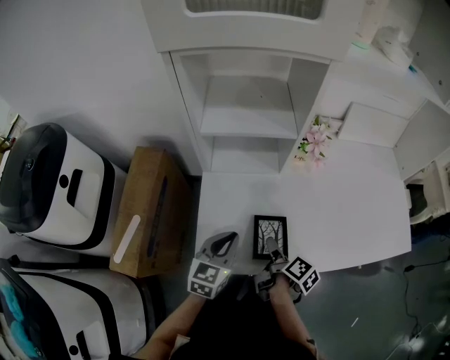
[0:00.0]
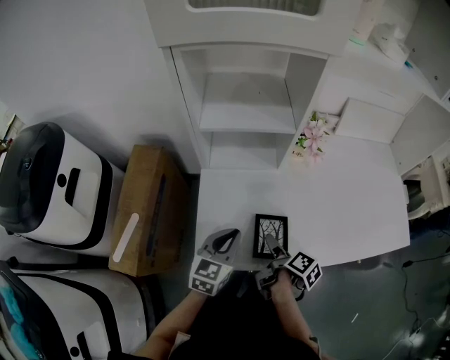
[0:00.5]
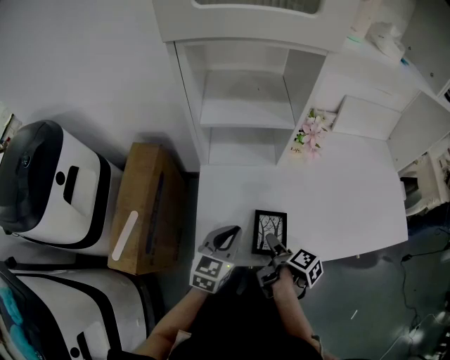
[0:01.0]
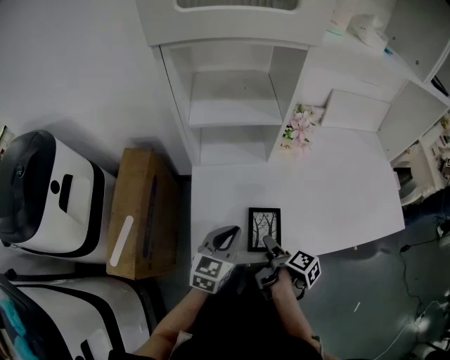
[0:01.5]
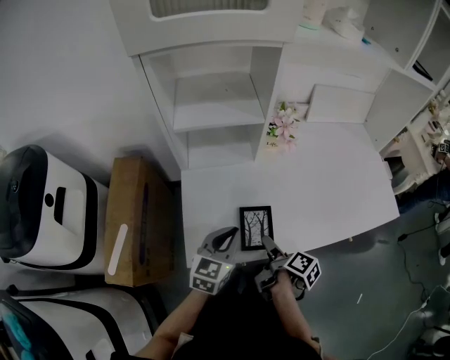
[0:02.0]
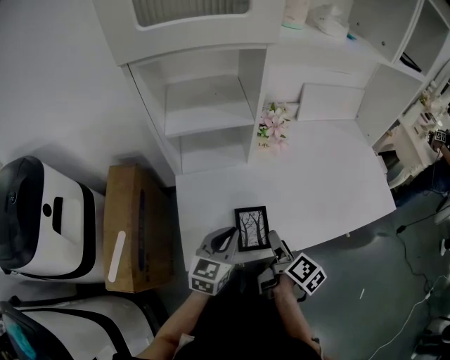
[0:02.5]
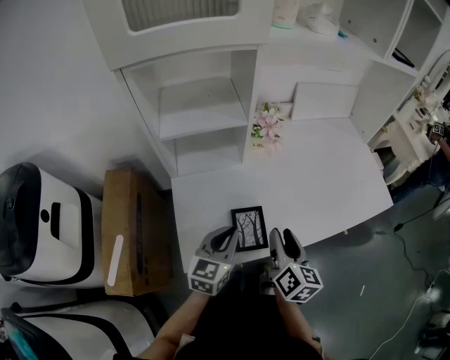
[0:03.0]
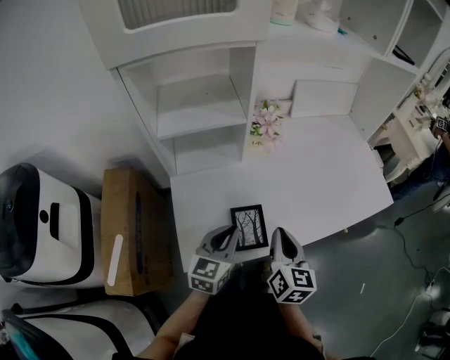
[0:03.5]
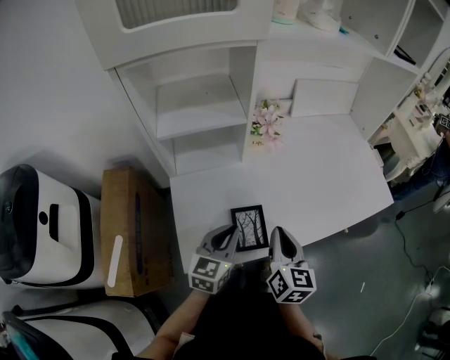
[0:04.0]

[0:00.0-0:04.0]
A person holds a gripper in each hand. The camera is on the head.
0:00.0 to 0:02.0: The right gripper shifts approximately 5 cm backward. The left gripper ends up approximately 5 cm from where it was.
0:02.0 to 0:04.0: The right gripper heads upward, covering approximately 15 cm, rolls counterclockwise, seen from behind, by roughly 60 degrees, and closes.

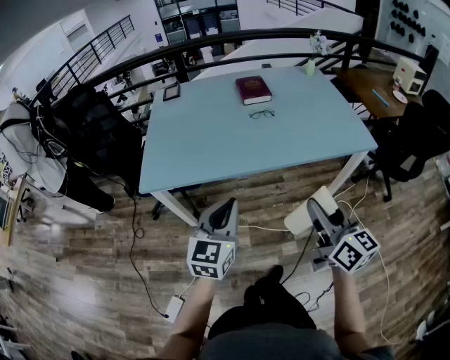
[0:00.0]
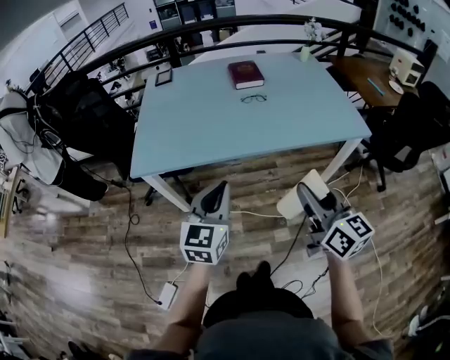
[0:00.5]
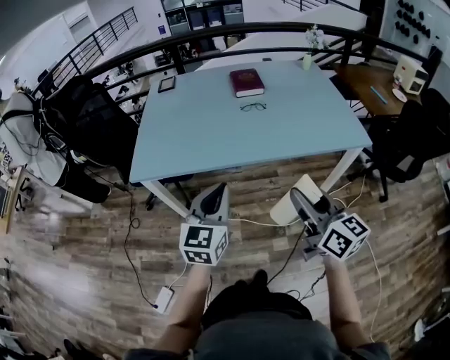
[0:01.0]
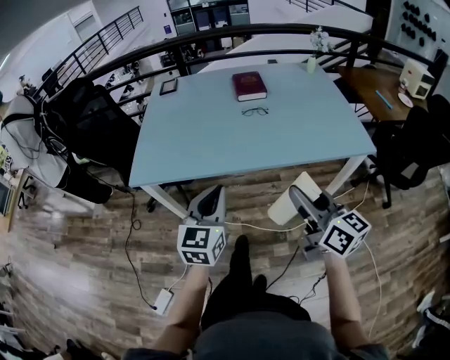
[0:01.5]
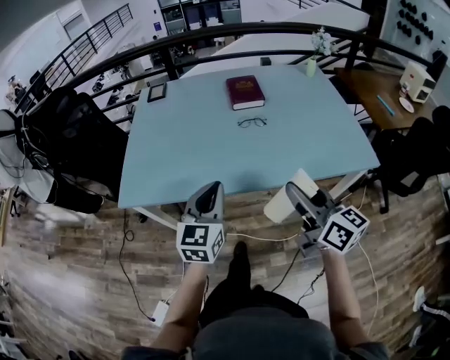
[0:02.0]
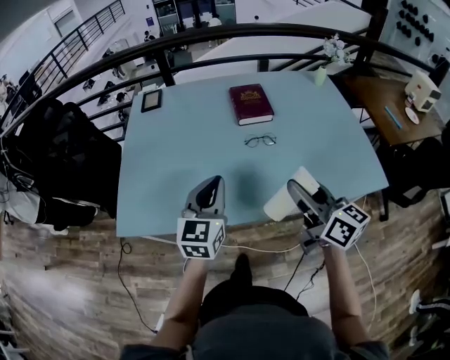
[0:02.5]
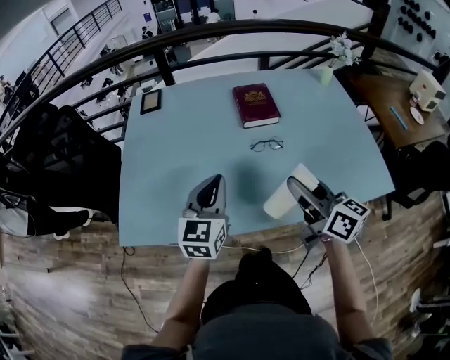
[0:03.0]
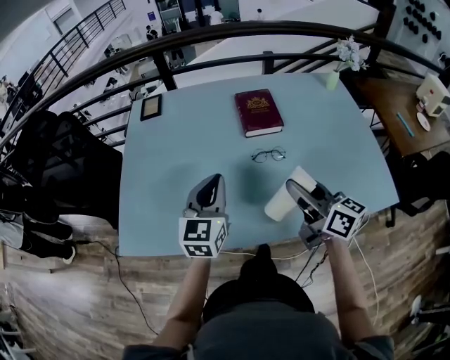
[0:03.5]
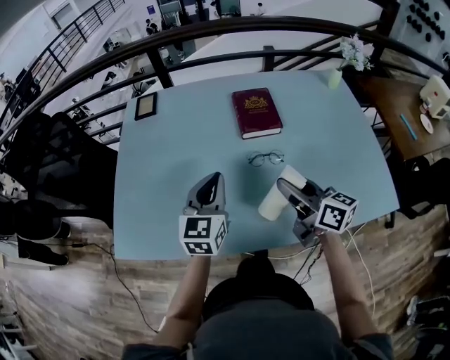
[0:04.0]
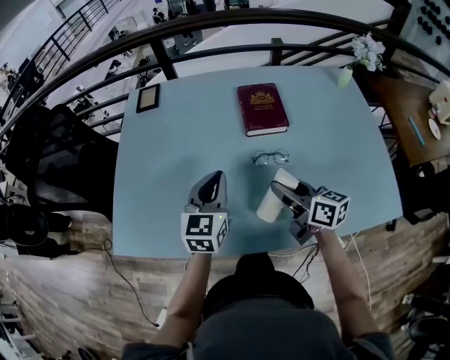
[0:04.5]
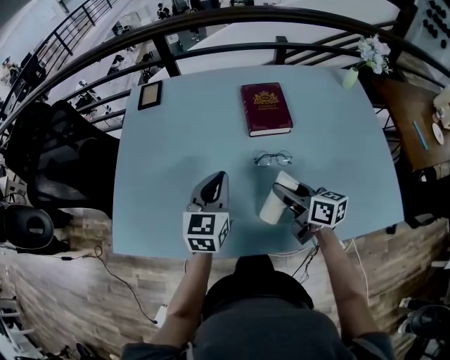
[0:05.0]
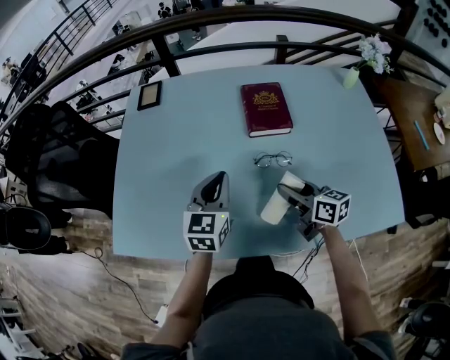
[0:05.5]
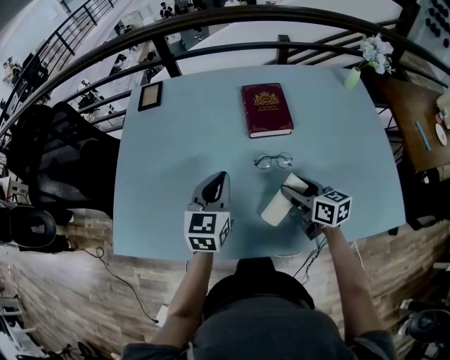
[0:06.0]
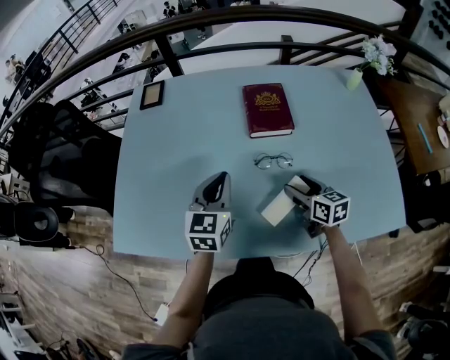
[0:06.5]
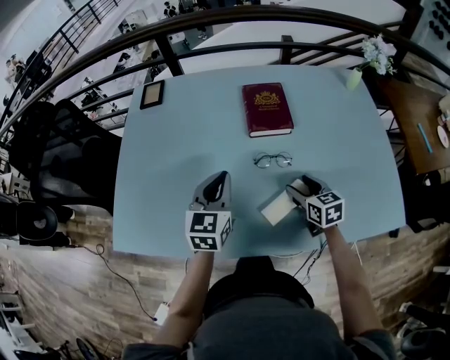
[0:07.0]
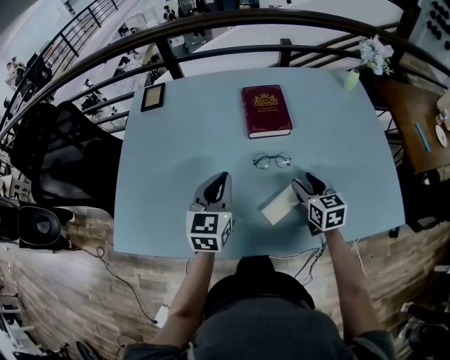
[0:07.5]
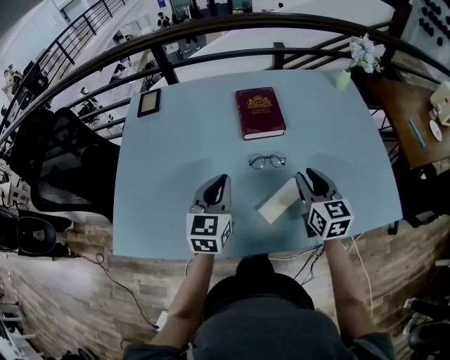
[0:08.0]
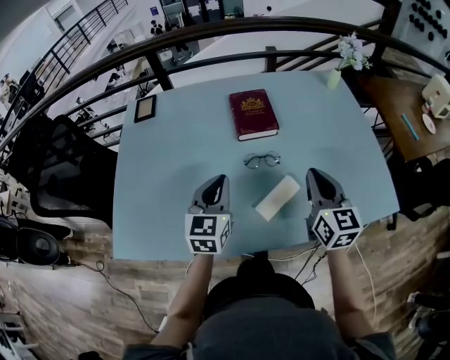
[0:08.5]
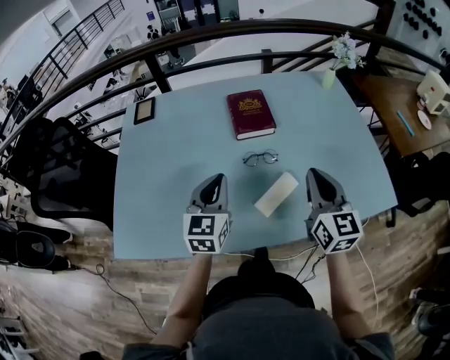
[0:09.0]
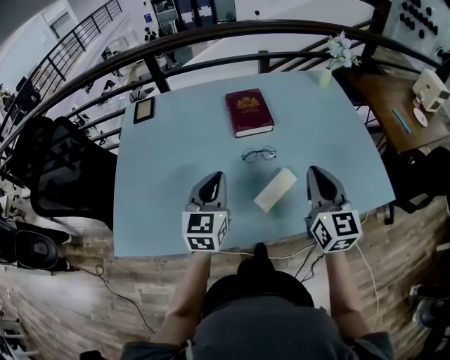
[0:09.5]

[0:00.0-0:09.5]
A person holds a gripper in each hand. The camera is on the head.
0:00.0 to 0:02.0: Both grippers move forward, some 15 cm.
0:02.0 to 0:04.0: The two grippers go some 25 cm forward.
0:04.0 to 0:05.5: The right gripper travels downward by about 10 cm.
0:05.5 to 0:07.5: The right gripper travels to the right by approximately 5 cm, and changes its angle by some 30 degrees.
0:07.5 to 0:09.5: The right gripper shifts roughly 20 cm upward and backward, turns by approximately 30 degrees, and closes its fingers, while the left gripper changes place by roughly 5 cm.

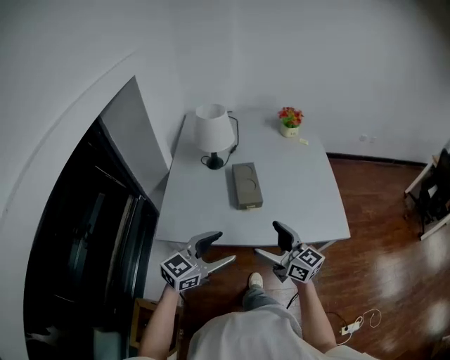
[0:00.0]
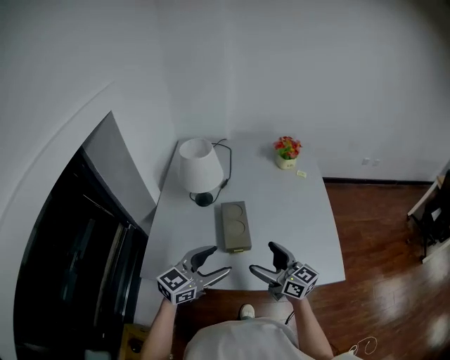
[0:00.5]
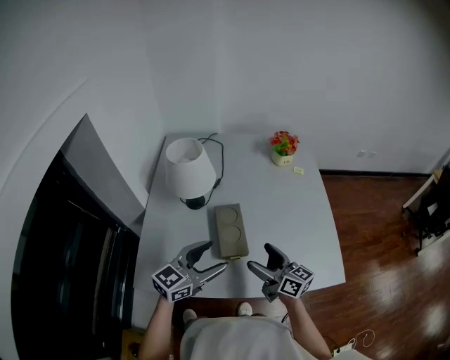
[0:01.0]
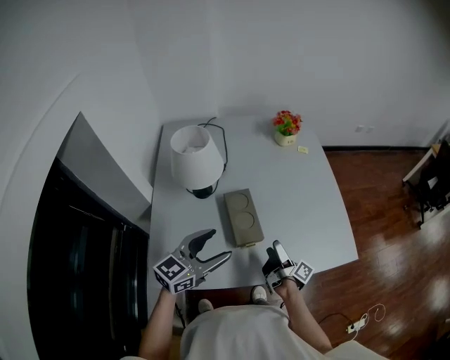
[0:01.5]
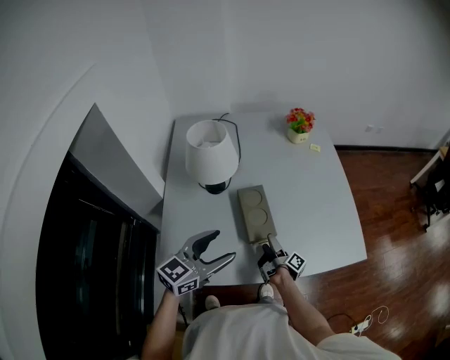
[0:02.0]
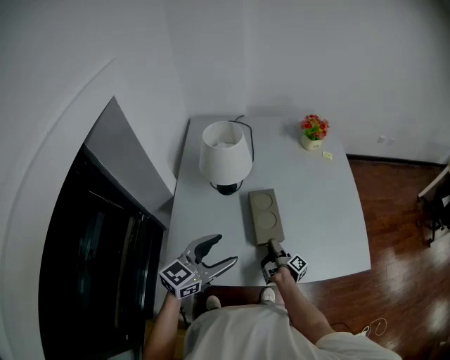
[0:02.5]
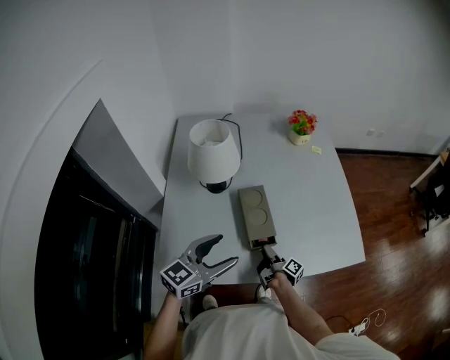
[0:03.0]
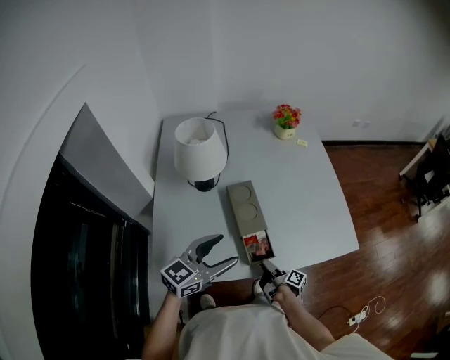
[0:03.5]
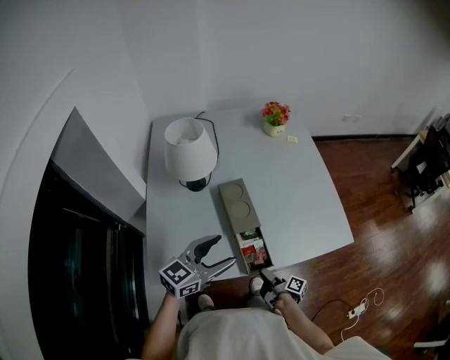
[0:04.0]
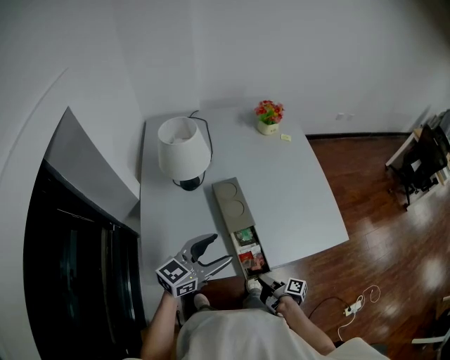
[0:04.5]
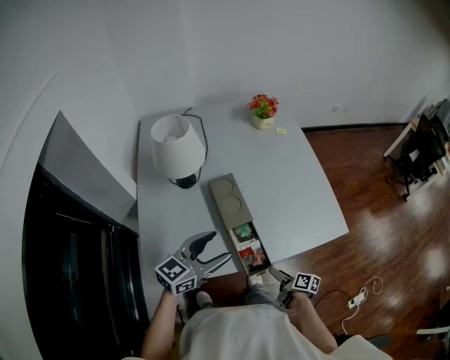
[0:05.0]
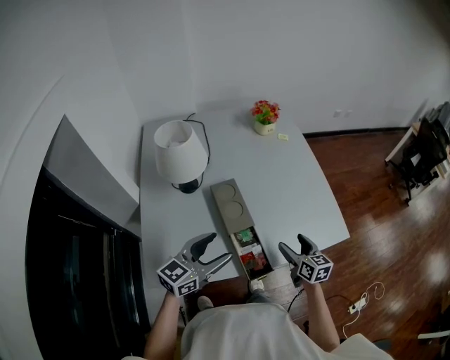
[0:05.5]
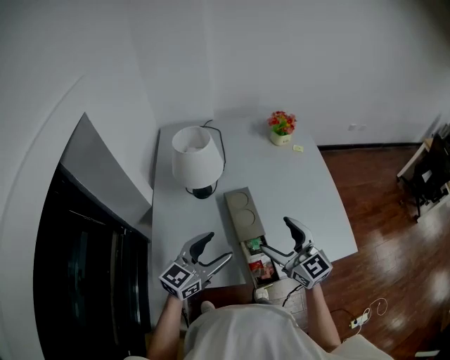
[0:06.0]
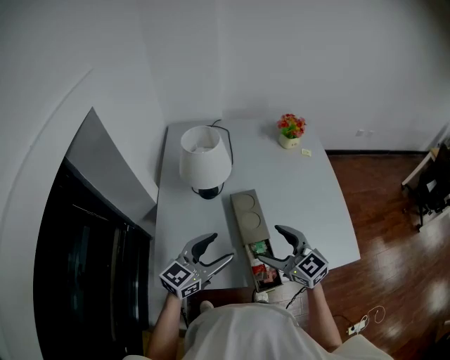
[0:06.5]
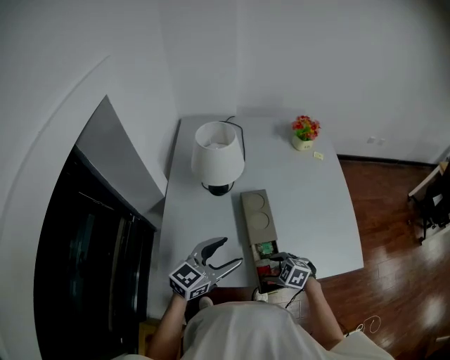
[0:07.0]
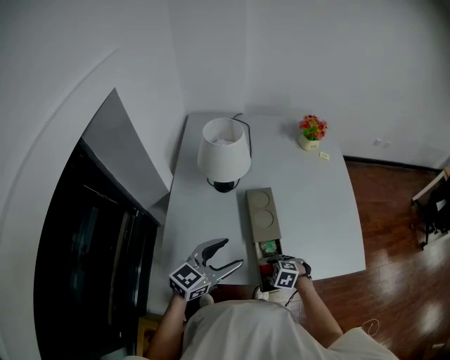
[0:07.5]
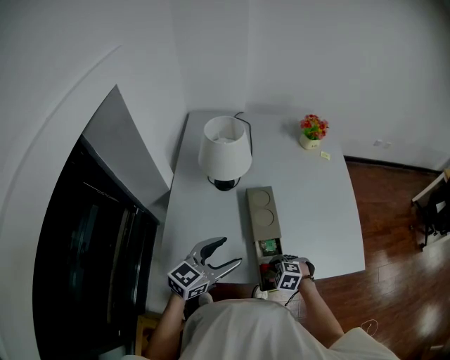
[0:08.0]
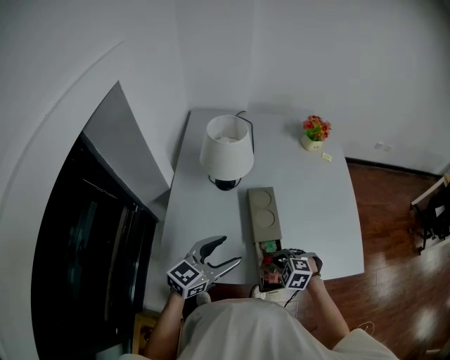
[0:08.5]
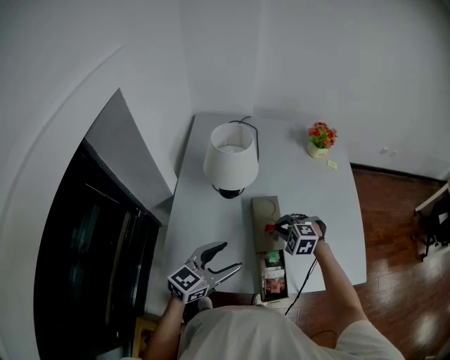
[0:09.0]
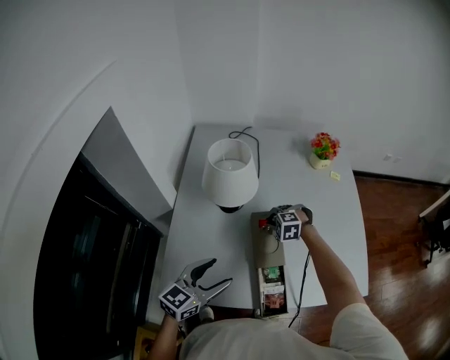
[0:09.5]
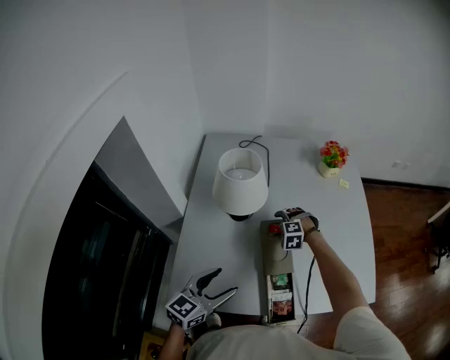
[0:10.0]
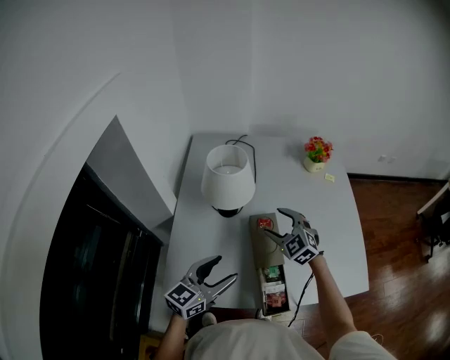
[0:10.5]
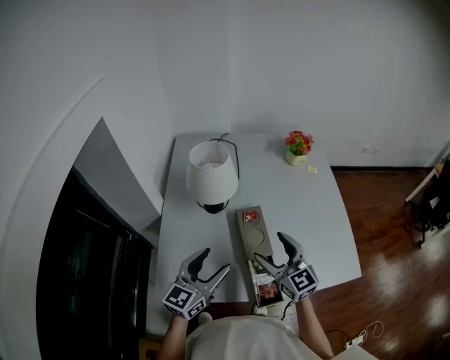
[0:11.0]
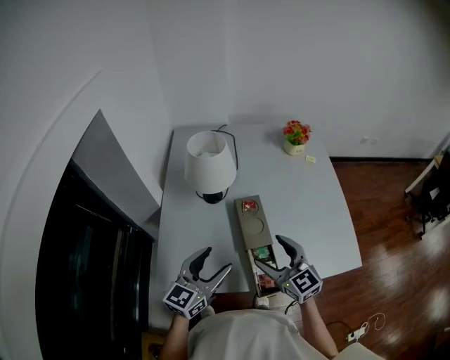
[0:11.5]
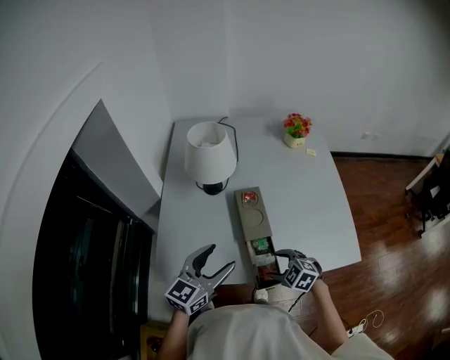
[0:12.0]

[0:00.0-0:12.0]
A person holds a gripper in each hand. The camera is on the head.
0:00.0 to 0:02.0: The right gripper goes some 30 cm downward and forward, and rotates around the line of its fingers by roughly 80 degrees, clockwise from behind; the left gripper travels forward by approximately 20 cm.
0:02.0 to 0:04.0: The right gripper heads backward and to the right, covering about 15 cm, and closes its fingers. The left gripper changes place by approximately 5 cm.
0:04.0 to 0:06.0: The right gripper heads upward, covering approximately 30 cm, twists roughly 100 degrees counterclockwise, seen from behind, and opens its fingers.
0:06.0 to 0:08.0: The right gripper is displaced downward by some 30 cm, tips its fingers downward by roughly 70 degrees, and closes up.
0:08.0 to 0:10.0: The right gripper is displaced forward by some 30 cm, changes its angle by some 30 degrees, and opens, while the left gripper shifts by about 5 cm.
0:10.0 to 0:12.0: The right gripper travels backward by about 30 cm, and rotates some 40 degrees. Meanwhile the left gripper ends up approximately 5 cm from where it was.

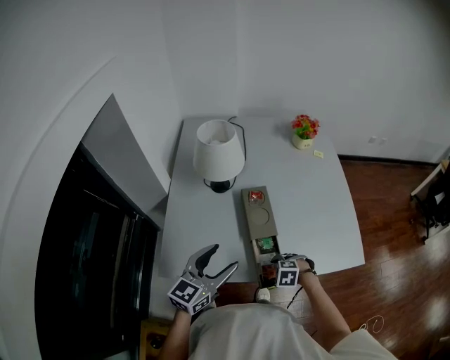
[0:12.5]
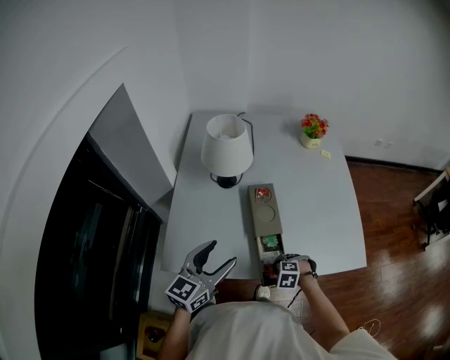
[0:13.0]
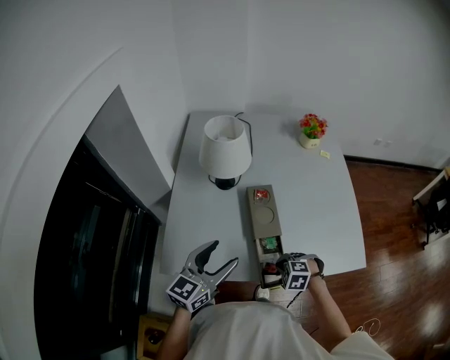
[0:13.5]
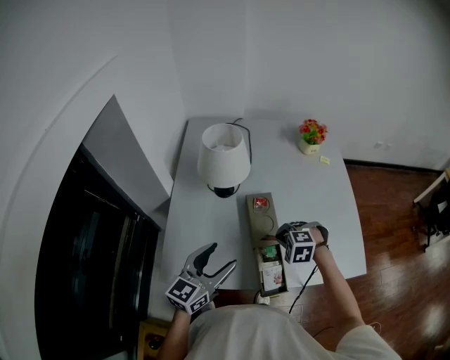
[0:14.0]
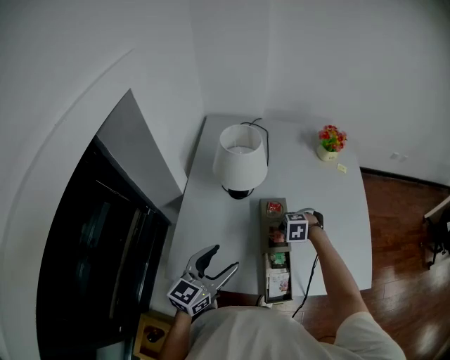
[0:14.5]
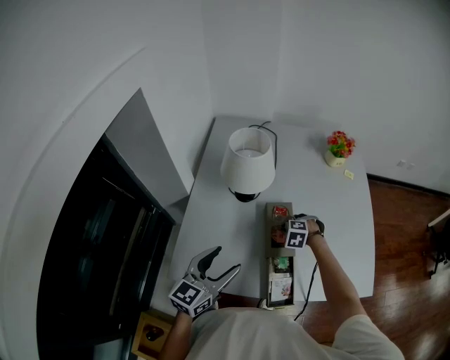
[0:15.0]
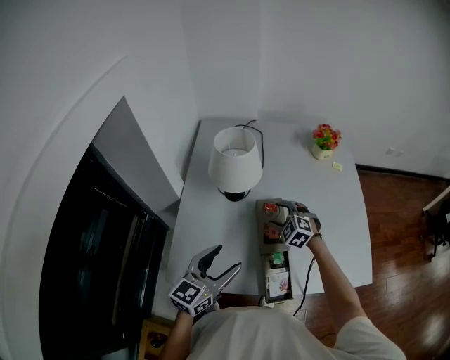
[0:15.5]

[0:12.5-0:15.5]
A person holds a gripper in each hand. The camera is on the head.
0:12.5 to 0:14.0: The right gripper changes place by some 20 cm, and closes.
0:14.0 to 0:15.5: The right gripper goes downward and returns, about 10 cm each way, swivels approximately 30 degrees, and opens.
